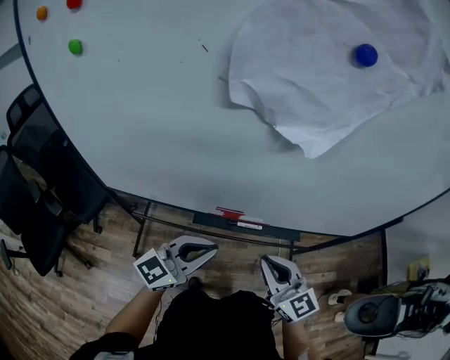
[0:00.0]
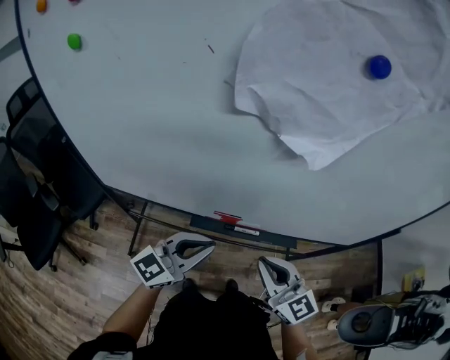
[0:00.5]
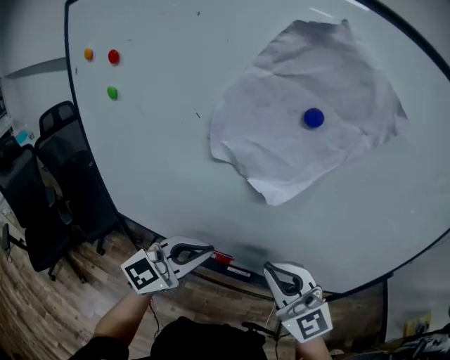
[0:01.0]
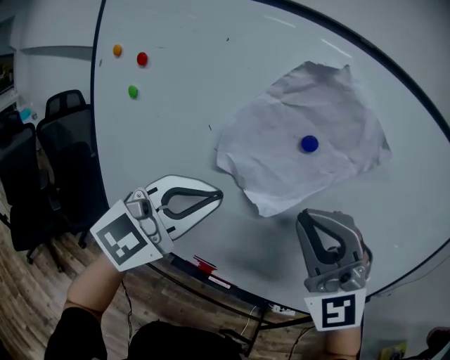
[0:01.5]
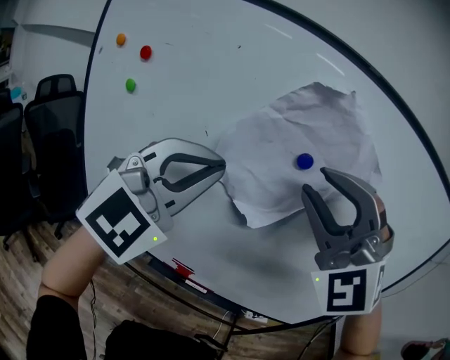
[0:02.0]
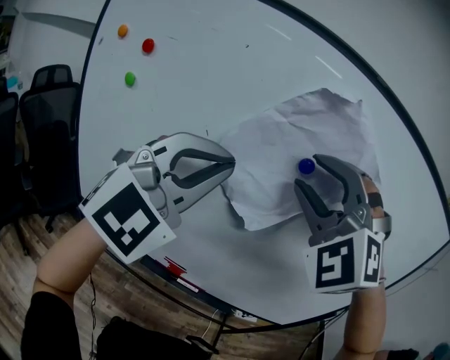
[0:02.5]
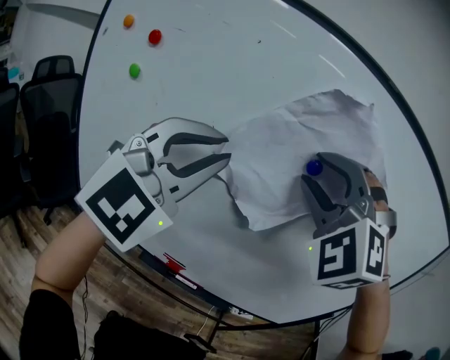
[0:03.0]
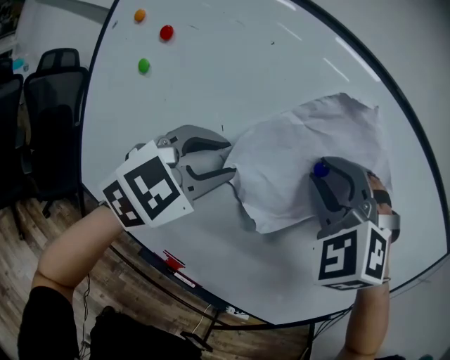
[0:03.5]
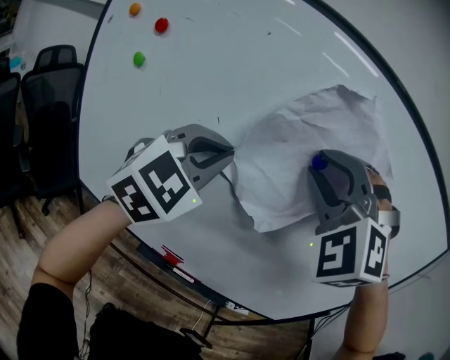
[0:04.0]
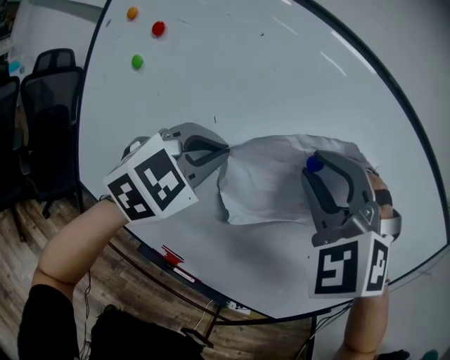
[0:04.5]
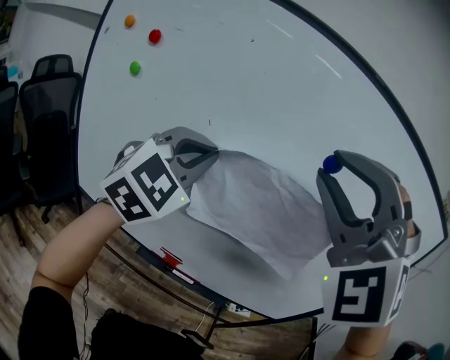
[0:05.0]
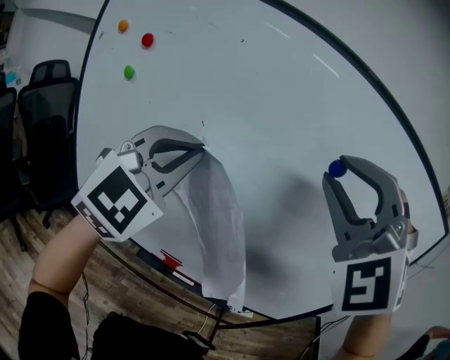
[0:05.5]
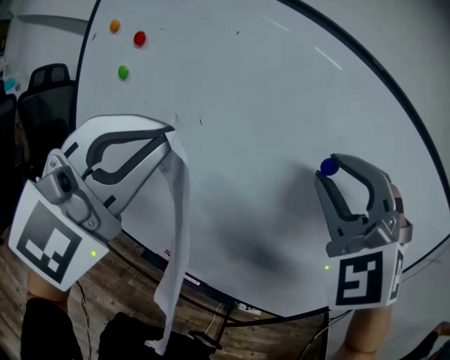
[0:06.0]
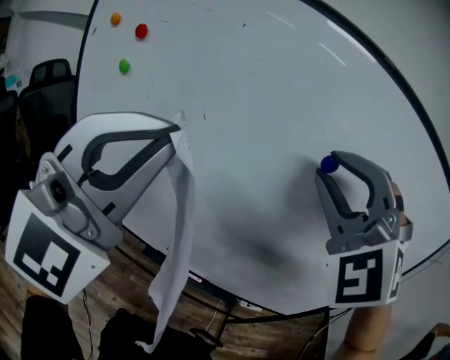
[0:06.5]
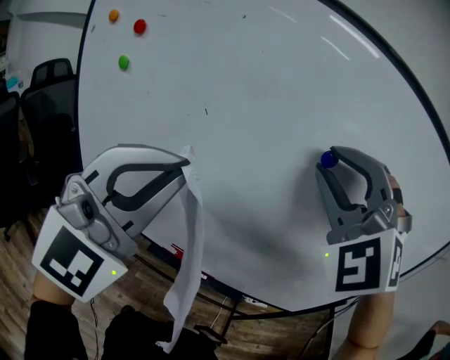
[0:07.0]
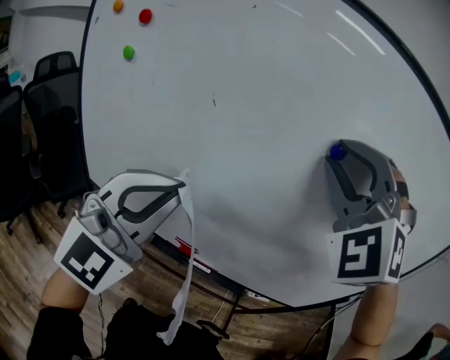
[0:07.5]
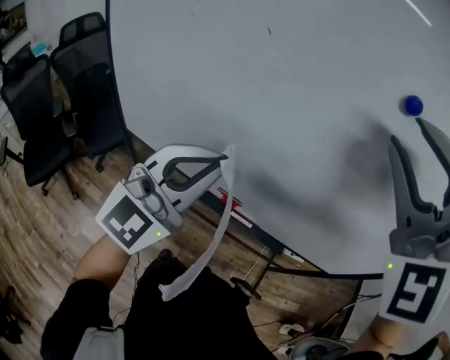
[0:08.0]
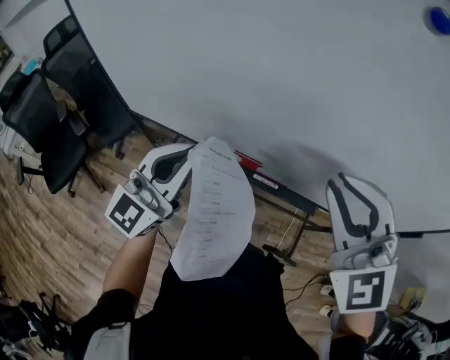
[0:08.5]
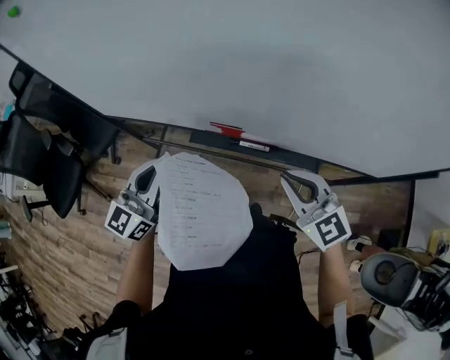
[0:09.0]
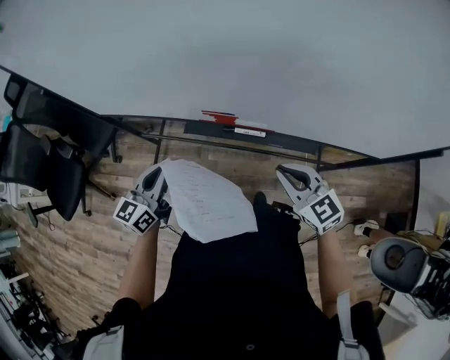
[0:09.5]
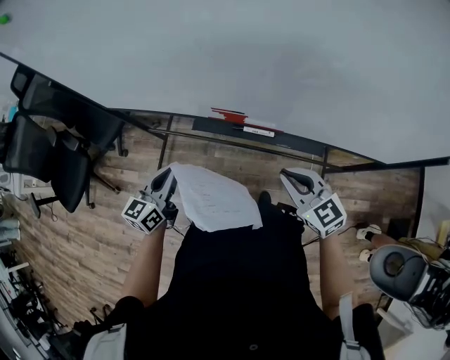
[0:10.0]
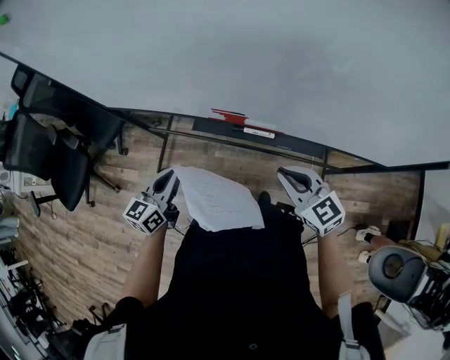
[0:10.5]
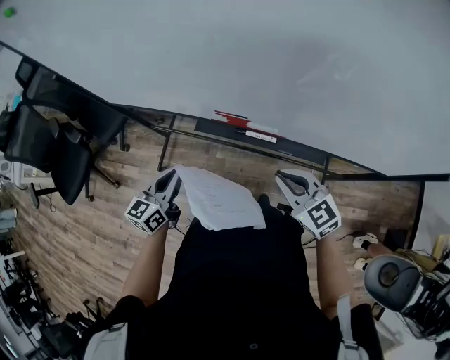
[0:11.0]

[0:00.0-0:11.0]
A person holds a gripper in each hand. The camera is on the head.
0:00.0 to 0:02.0: Both grippers move upward, roughly 40 cm. The left gripper rolls clockwise, seen from behind, by roughly 60 degrees; the right gripper rolls counterclockwise, seen from behind, by about 80 degrees, and opens its fingers.
0:02.0 to 0:03.5: The grippers both shift forward by about 5 cm. The right gripper swivels approximately 20 degrees, while the left gripper opens.
0:03.5 to 0:05.5: The left gripper closes its fingers. Meanwhile the right gripper moves backward, some 5 cm.
0:05.5 to 0:07.5: The right gripper heads forward, covering approximately 5 cm. Meanwhile the left gripper heads downward and backward, covering about 10 cm.
0:07.5 to 0:09.0: The two grippers go roughly 40 cm downward. The right gripper rolls clockwise, seen from behind, by approximately 70 degrees, and closes; the left gripper rolls counterclockwise, seen from behind, by some 40 degrees.
0:09.0 to 0:11.0: The left gripper moves downward, approximately 15 cm, and changes its angle by approximately 20 degrees, while the right gripper is displaced downward by some 10 cm.

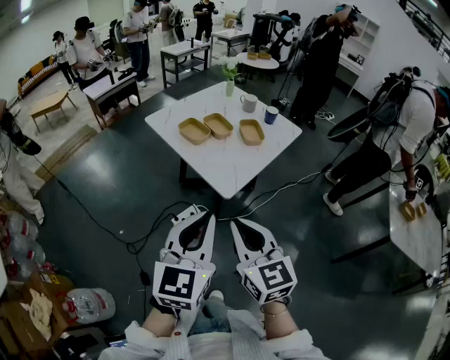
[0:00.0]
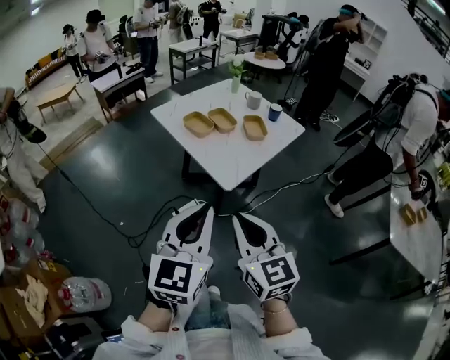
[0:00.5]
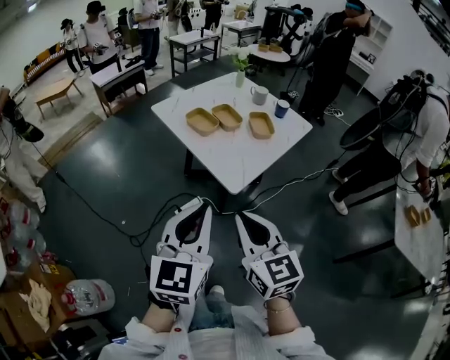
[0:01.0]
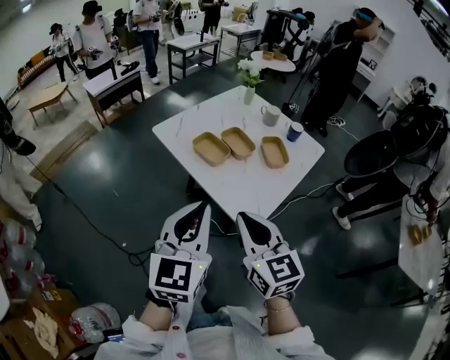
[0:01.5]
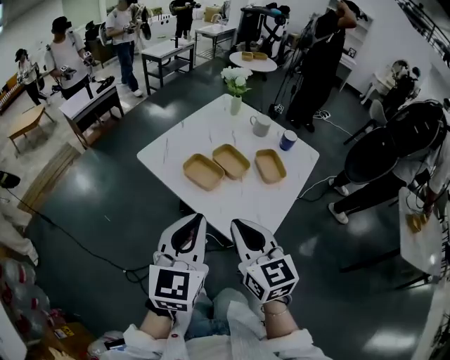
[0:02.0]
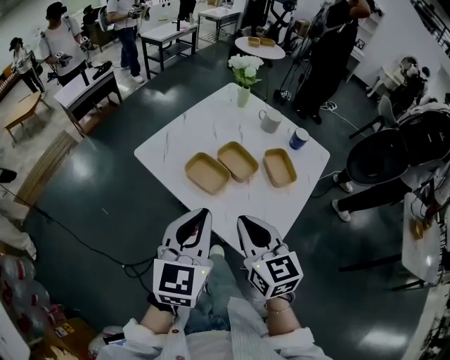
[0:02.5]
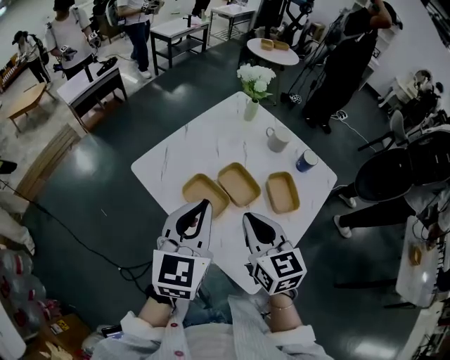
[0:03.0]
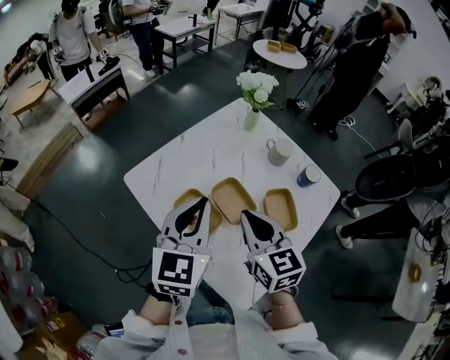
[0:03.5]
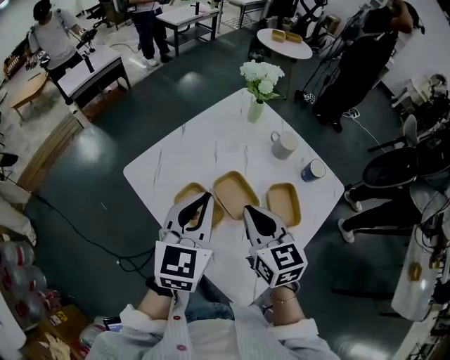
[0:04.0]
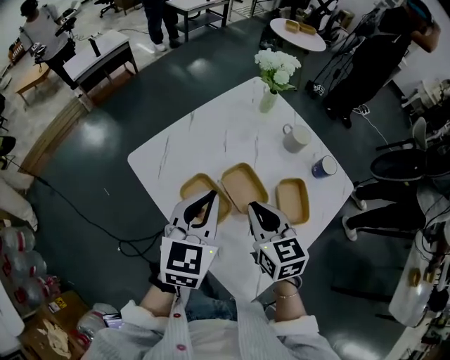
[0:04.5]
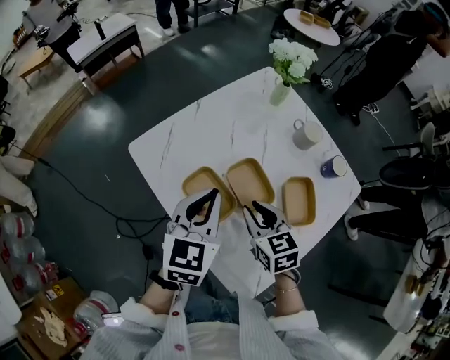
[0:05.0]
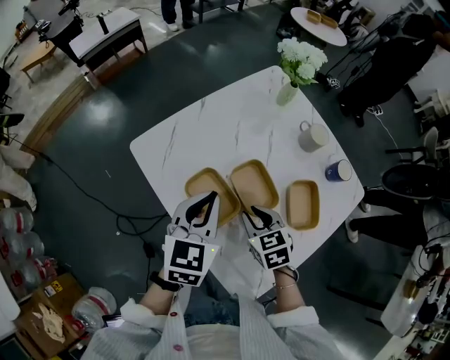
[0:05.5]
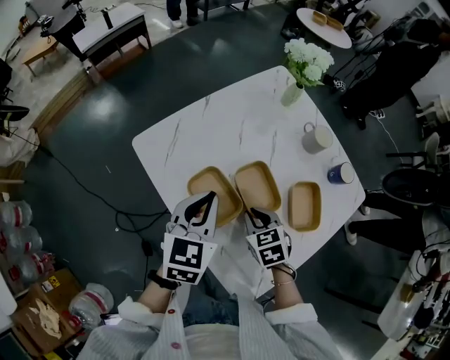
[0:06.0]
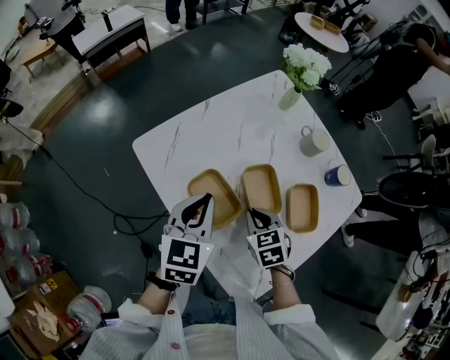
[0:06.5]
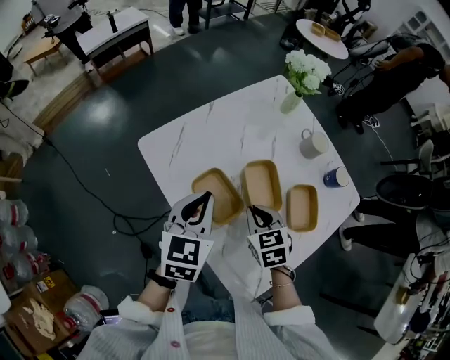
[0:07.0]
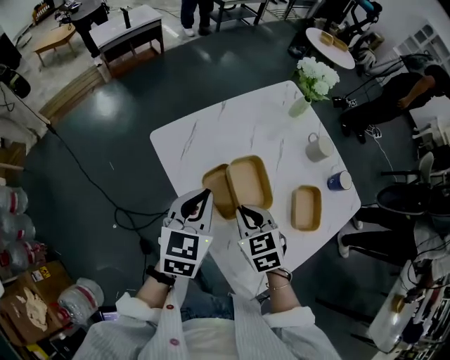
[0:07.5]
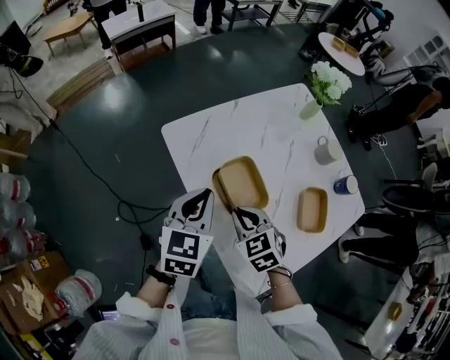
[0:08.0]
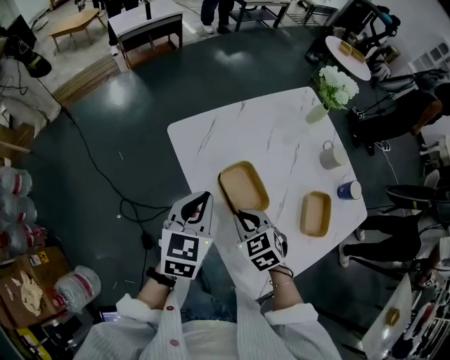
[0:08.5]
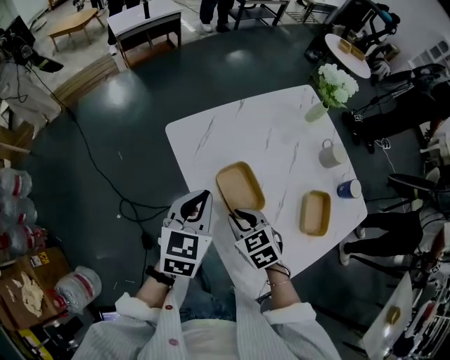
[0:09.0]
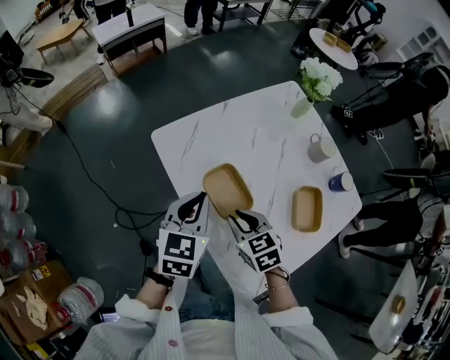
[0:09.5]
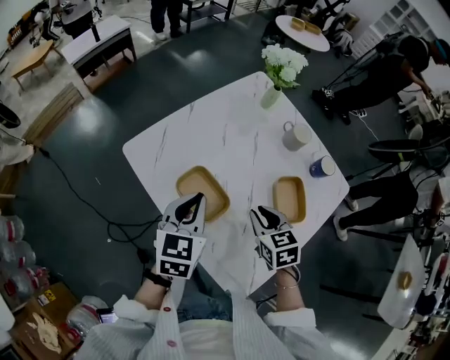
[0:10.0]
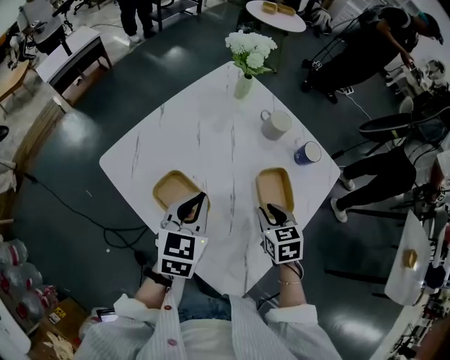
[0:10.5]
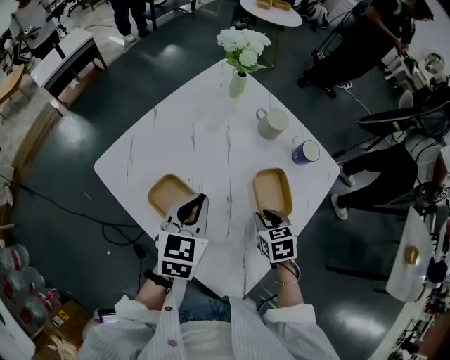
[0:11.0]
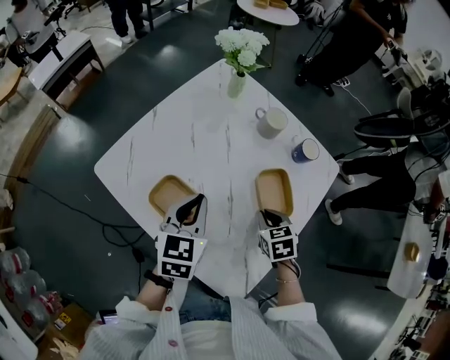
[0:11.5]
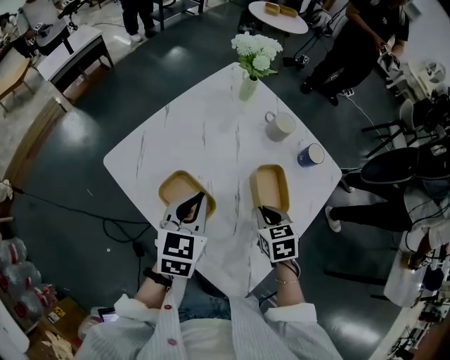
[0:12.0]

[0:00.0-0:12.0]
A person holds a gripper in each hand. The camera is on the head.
0:00.0 to 0:02.0: Both grippers travel together forward, approximately 30 cm.
0:02.0 to 0:04.0: Both grippers travel together forward, approximately 25 cm.
0:04.0 to 0:06.0: The left gripper is displaced downward by some 10 cm, while the right gripper shifts approximately 20 cm downward, and angles its fingers downward, by some 30 degrees.
0:06.0 to 0:08.0: The right gripper travels to the left and upward by some 10 cm, and swivels about 20 degrees, while the left gripper is displaced to the left by approximately 10 cm.
0:08.0 to 0:10.0: The left gripper travels to the right by about 5 cm. The right gripper goes roughly 15 cm to the right, and rotates about 30 degrees.
0:10.0 to 0:12.0: The two grippers go roughly 5 cm to the right.

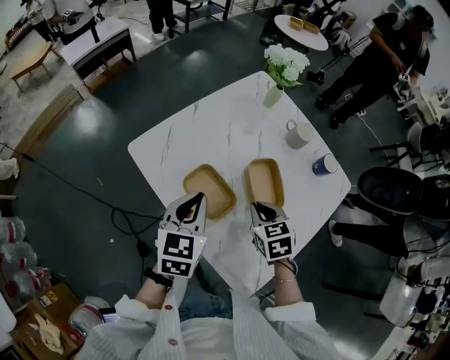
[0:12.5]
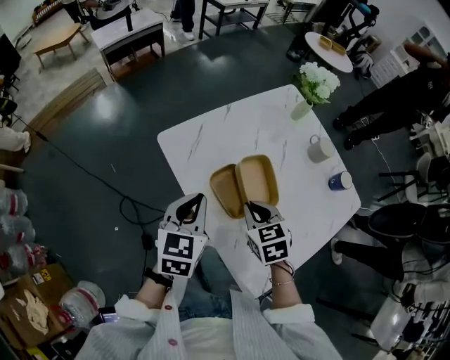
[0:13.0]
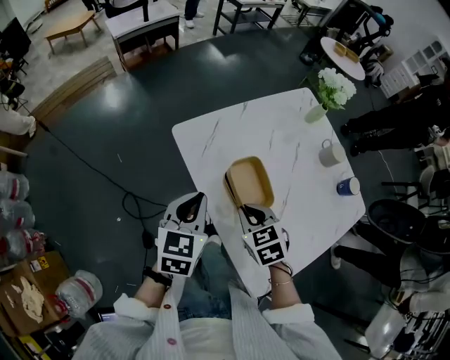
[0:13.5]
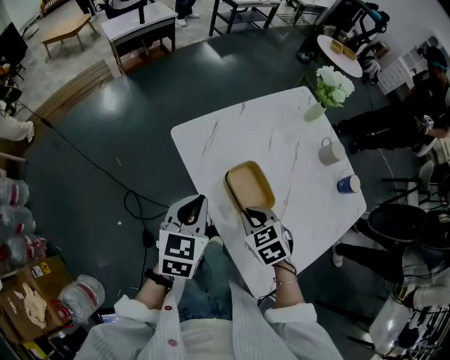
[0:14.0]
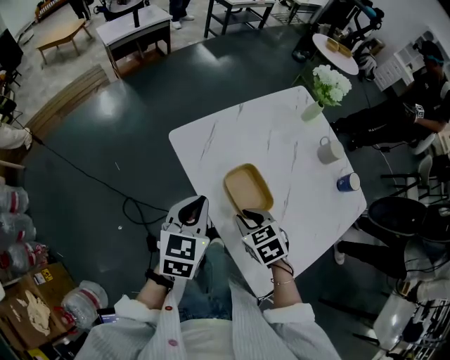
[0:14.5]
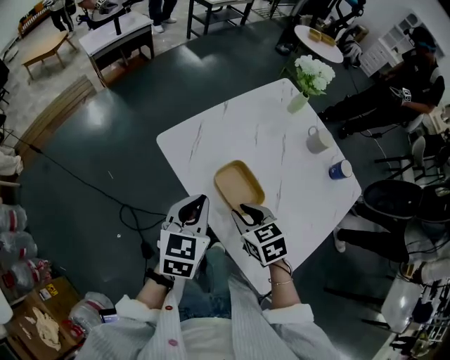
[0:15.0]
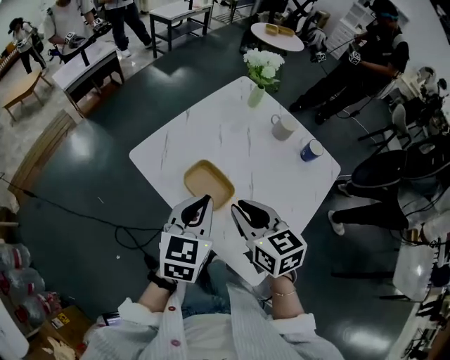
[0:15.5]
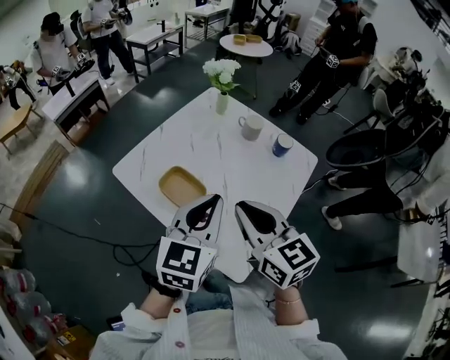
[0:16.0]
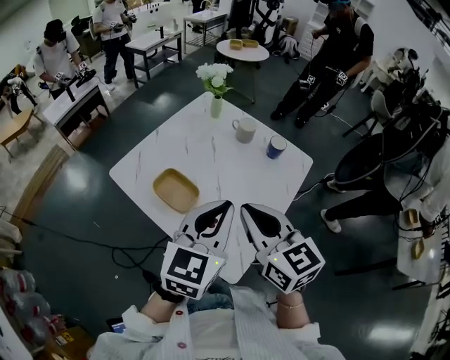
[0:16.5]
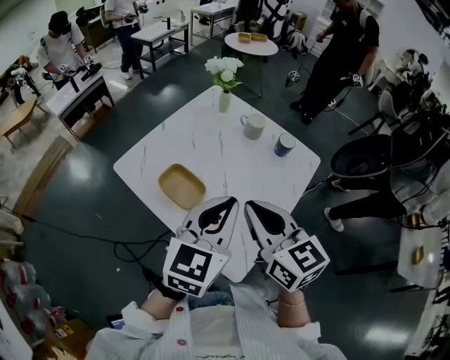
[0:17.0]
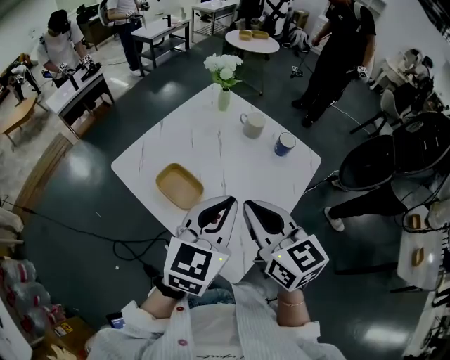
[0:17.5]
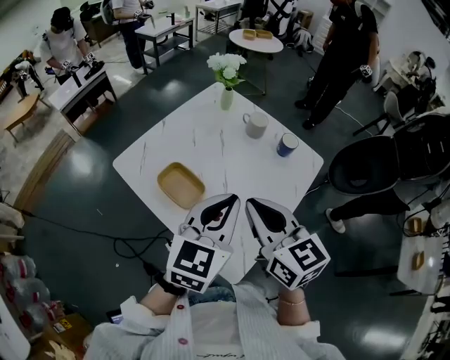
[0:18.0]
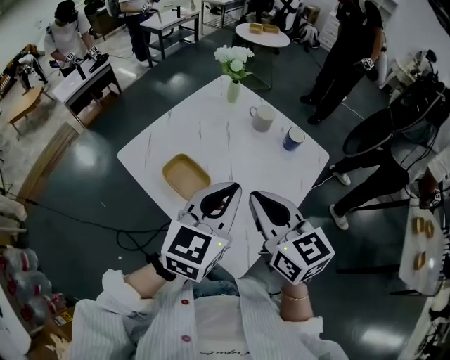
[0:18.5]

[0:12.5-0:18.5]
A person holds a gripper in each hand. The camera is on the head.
0:12.5 to 0:14.5: Both grippers travel together to the left, roughly 15 cm. The right gripper changes its angle by about 20 degrees.
0:14.5 to 0:16.5: The right gripper goes approximately 25 cm upward, and tips its fingers upward by approximately 40 degrees. The left gripper moves some 35 cm, and changes its angle by roughly 30 degrees.
0:16.5 to 0:18.5: There are only small adjustments of the grippers.
